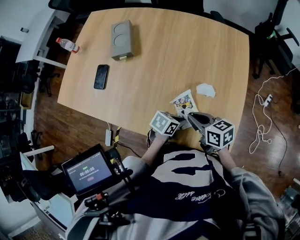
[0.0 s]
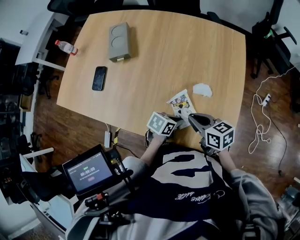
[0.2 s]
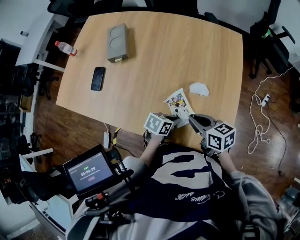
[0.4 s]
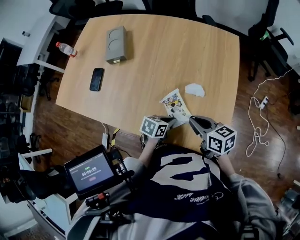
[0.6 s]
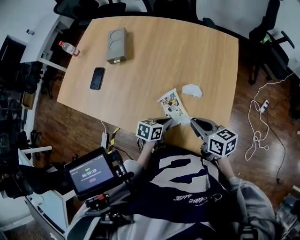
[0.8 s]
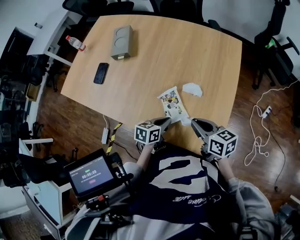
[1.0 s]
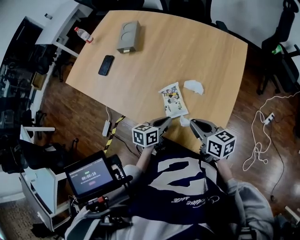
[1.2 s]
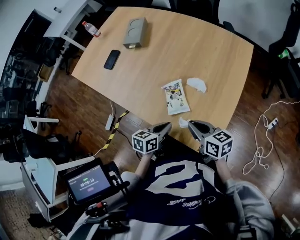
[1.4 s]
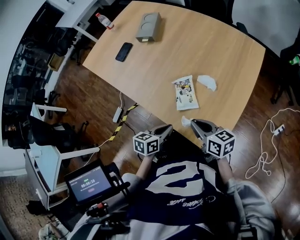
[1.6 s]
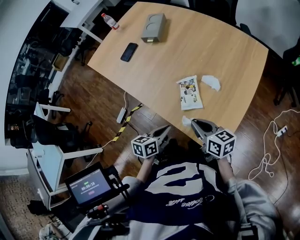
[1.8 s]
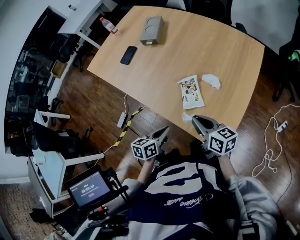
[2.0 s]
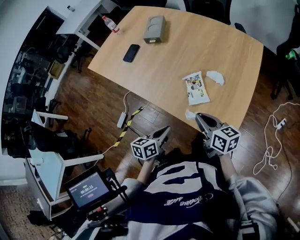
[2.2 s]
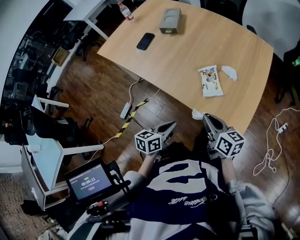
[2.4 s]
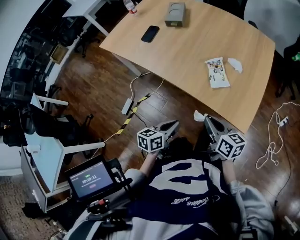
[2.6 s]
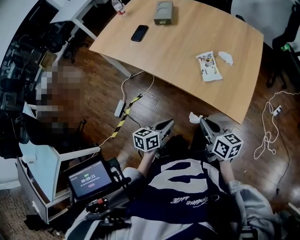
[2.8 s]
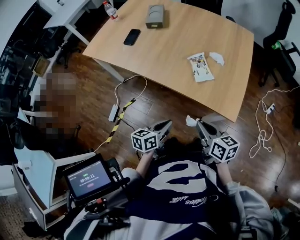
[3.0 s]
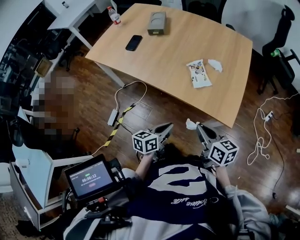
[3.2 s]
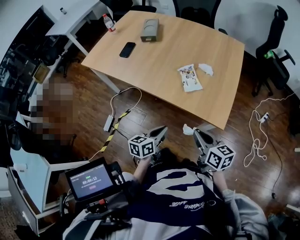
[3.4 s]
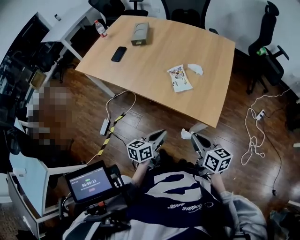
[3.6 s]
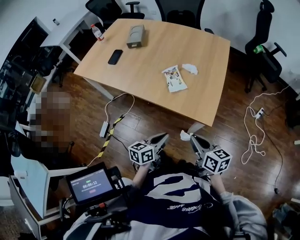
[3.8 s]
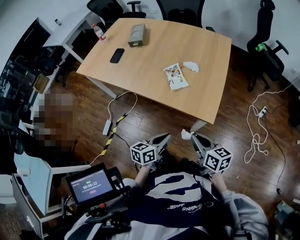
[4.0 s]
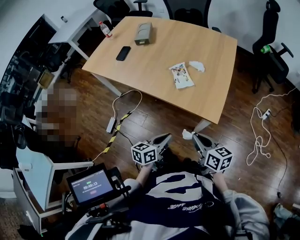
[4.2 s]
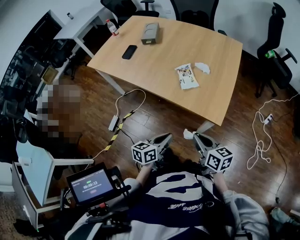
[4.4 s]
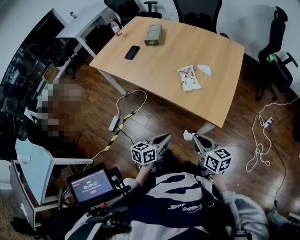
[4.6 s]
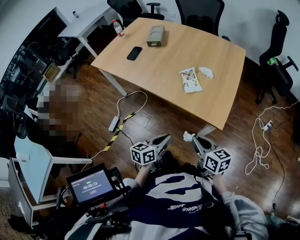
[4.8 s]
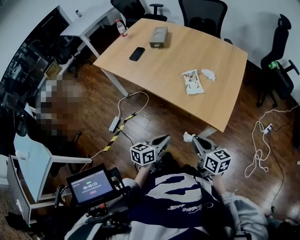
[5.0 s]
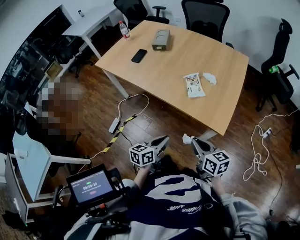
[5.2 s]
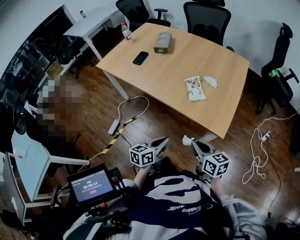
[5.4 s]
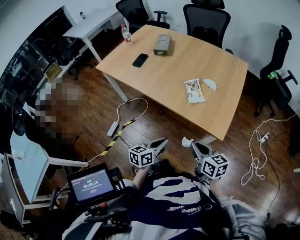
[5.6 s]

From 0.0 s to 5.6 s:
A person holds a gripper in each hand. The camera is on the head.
From 0.0 s to 1.4 s: The right gripper moves approximately 10 cm. Meanwhile the left gripper changes place by roughly 10 cm, and swivels about 40 degrees.
From 1.4 s to 2.8 s: The left gripper goes about 25 cm to the left and backward. The right gripper moves backward and to the left, roughly 25 cm.
From 2.8 s to 4.2 s: Both grippers travel together to the right and backward, approximately 15 cm.
From 4.2 s to 5.6 s: Both grippers travel together to the left, approximately 10 cm.

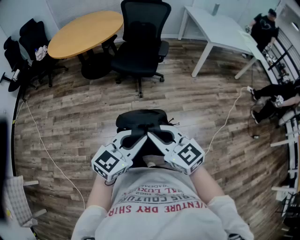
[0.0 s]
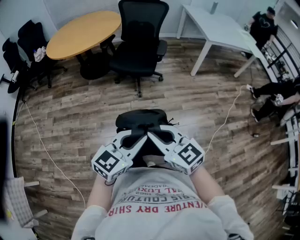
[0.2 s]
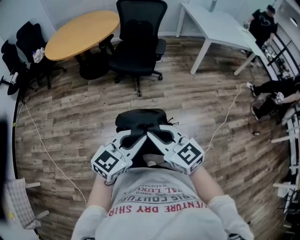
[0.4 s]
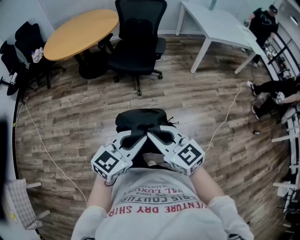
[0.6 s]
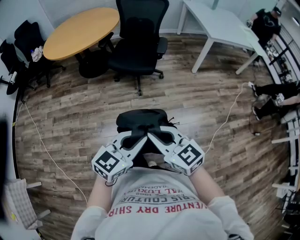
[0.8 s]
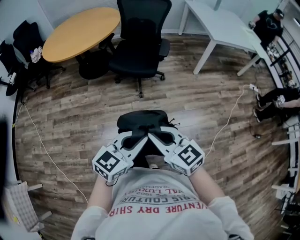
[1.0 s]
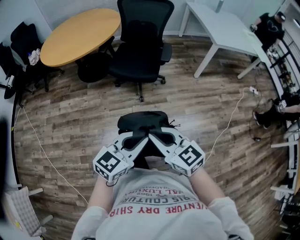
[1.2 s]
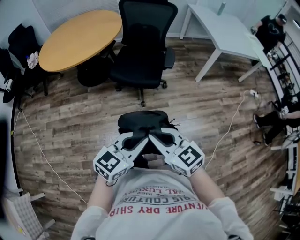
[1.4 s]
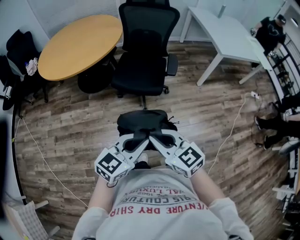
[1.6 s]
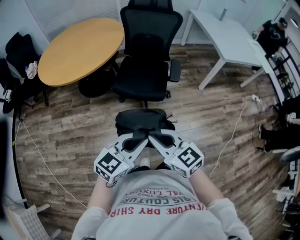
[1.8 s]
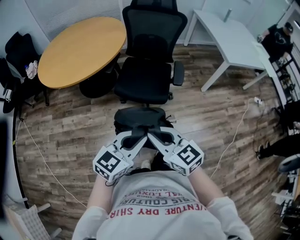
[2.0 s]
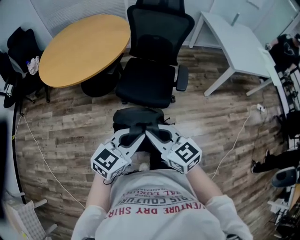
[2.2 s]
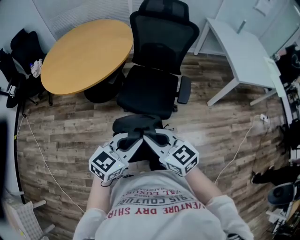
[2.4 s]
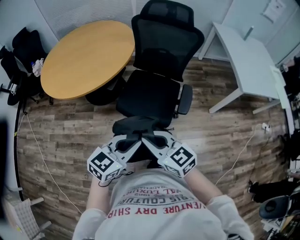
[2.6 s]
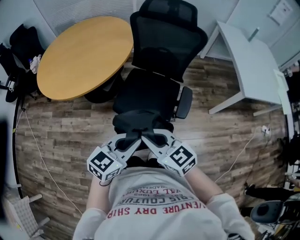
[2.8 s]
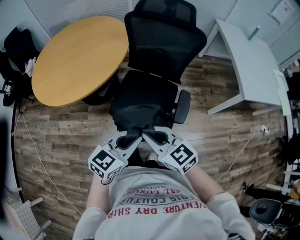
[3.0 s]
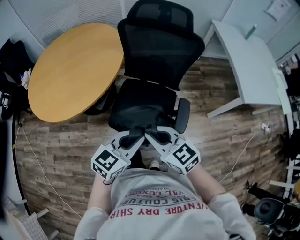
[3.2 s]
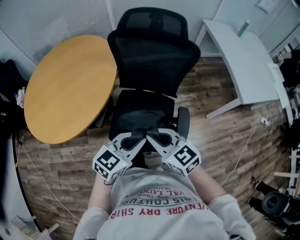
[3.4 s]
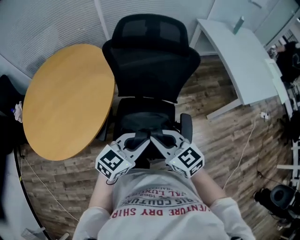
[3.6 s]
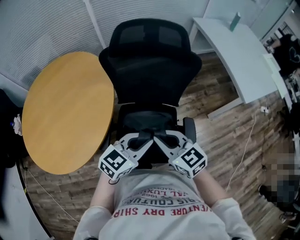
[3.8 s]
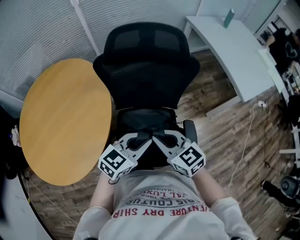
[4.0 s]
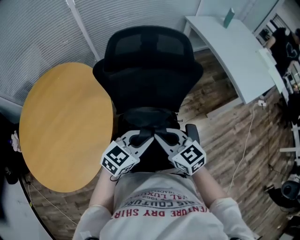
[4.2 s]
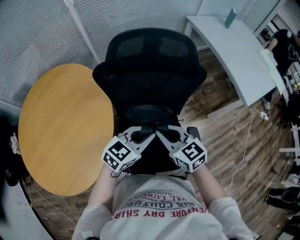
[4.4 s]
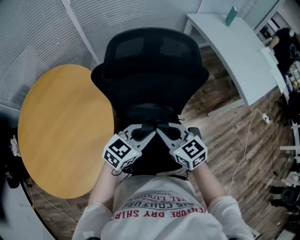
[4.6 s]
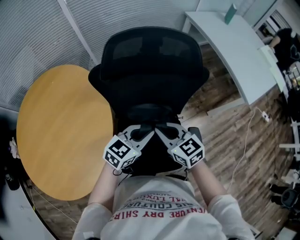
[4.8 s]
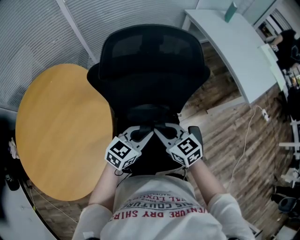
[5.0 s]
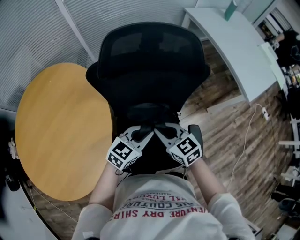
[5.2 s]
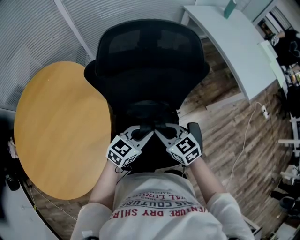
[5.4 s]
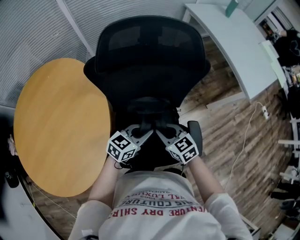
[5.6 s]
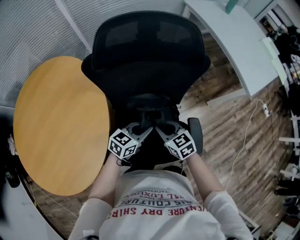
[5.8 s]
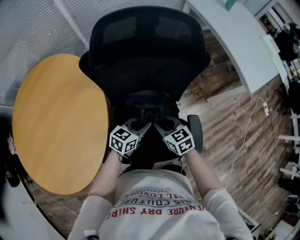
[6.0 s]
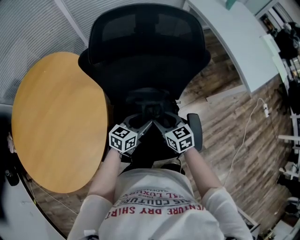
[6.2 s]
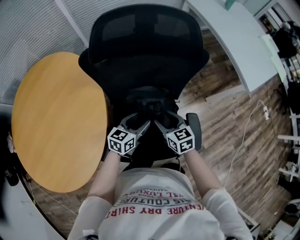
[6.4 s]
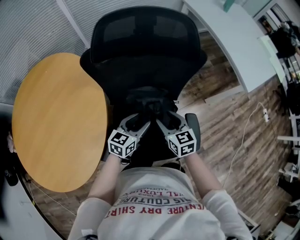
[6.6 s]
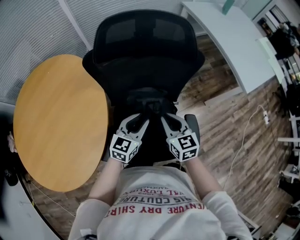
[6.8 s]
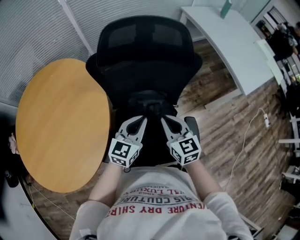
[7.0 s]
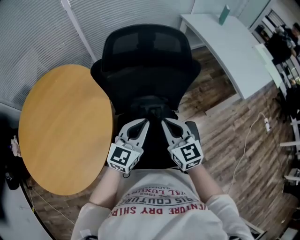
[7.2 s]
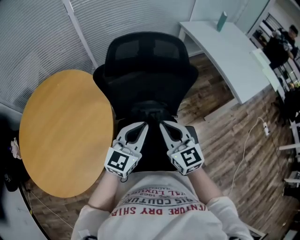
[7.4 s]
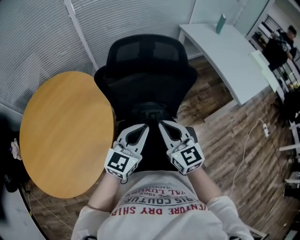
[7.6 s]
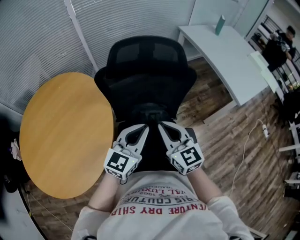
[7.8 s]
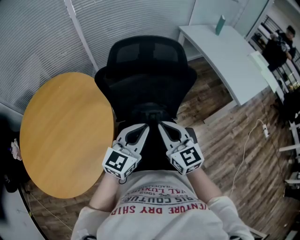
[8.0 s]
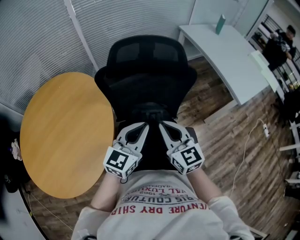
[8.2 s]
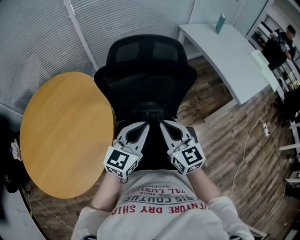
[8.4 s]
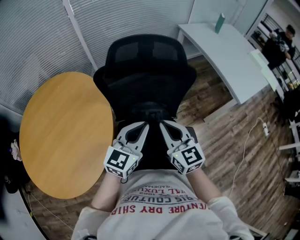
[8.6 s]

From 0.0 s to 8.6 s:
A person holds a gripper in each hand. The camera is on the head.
From 0.0 s to 1.4 s: The grippers both shift forward by about 20 cm.
From 1.4 s to 2.8 s: Both grippers move forward, about 35 cm.
From 2.8 s to 4.4 s: The two grippers travel together, some 40 cm. The left gripper changes its angle by about 30 degrees; the right gripper turns by approximately 30 degrees.
From 4.4 s to 5.8 s: Both grippers move downward, about 15 cm.
From 5.8 s to 7.2 s: The two grippers go about 15 cm upward. The right gripper swivels approximately 30 degrees, and opens, then closes once more. The left gripper changes its angle by about 30 degrees, and opens, then closes once more.
From 7.2 s to 8.6 s: The right gripper ends up approximately 5 cm from where it was.

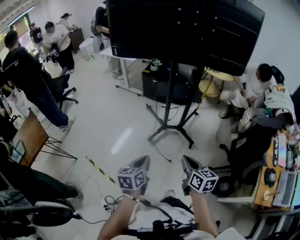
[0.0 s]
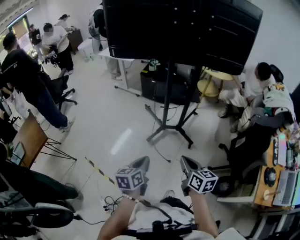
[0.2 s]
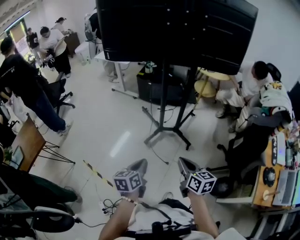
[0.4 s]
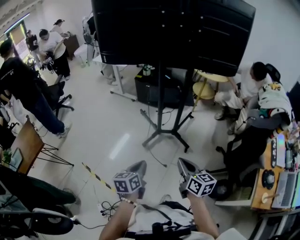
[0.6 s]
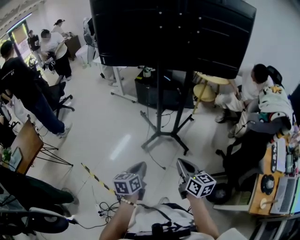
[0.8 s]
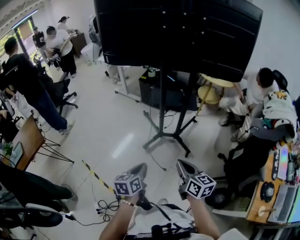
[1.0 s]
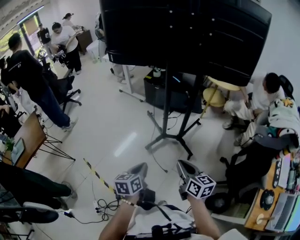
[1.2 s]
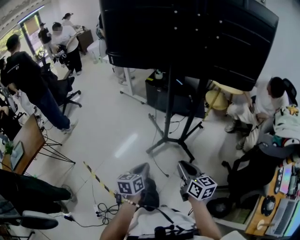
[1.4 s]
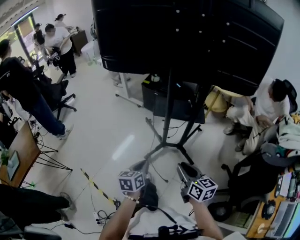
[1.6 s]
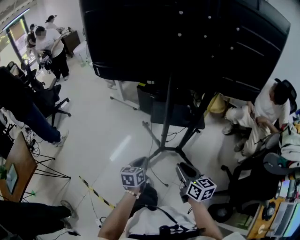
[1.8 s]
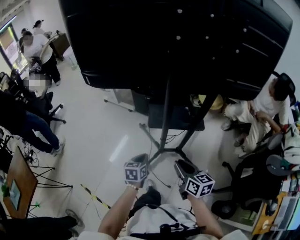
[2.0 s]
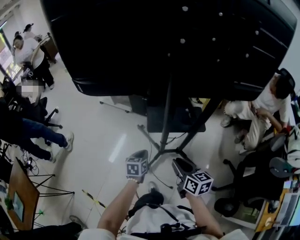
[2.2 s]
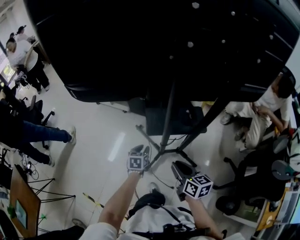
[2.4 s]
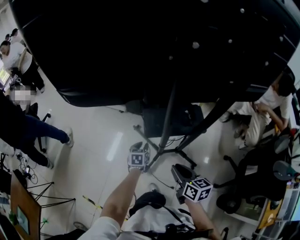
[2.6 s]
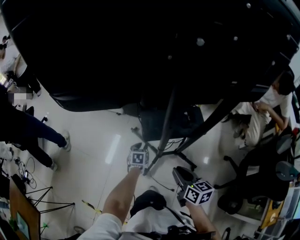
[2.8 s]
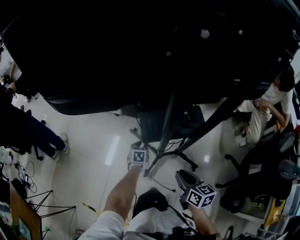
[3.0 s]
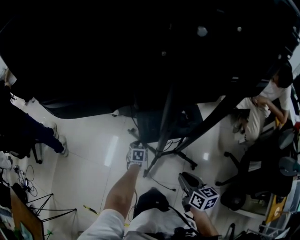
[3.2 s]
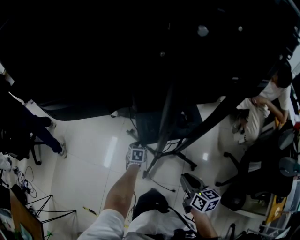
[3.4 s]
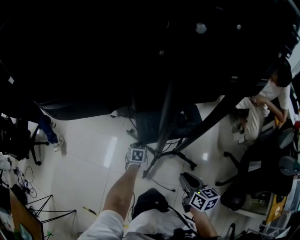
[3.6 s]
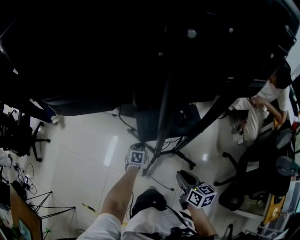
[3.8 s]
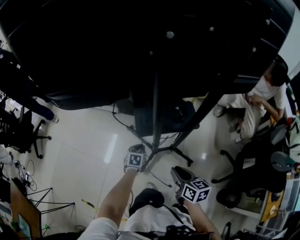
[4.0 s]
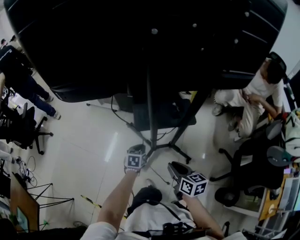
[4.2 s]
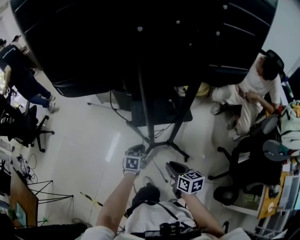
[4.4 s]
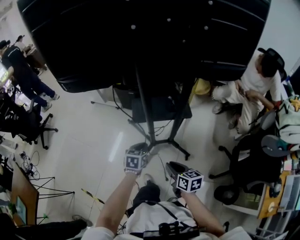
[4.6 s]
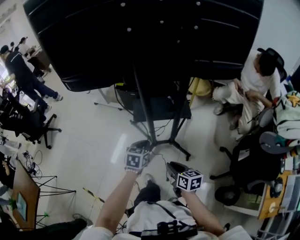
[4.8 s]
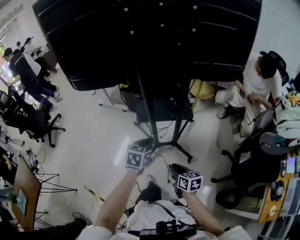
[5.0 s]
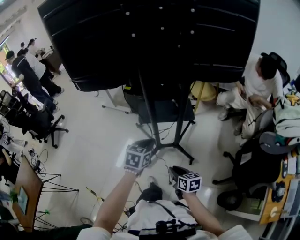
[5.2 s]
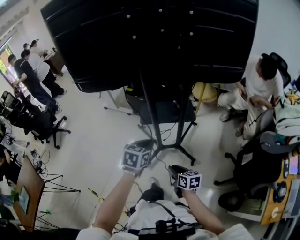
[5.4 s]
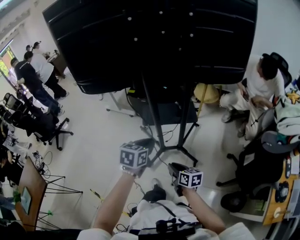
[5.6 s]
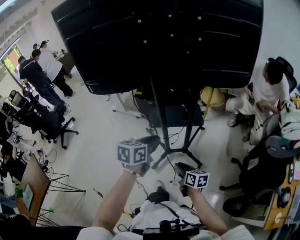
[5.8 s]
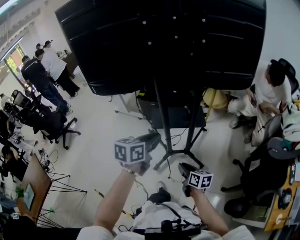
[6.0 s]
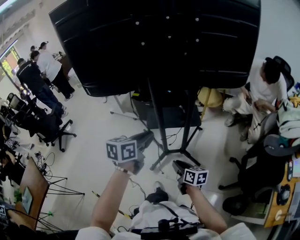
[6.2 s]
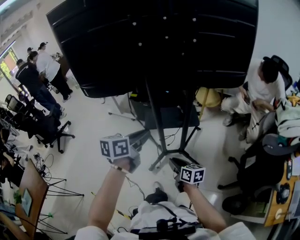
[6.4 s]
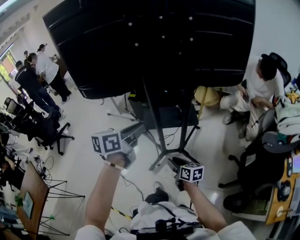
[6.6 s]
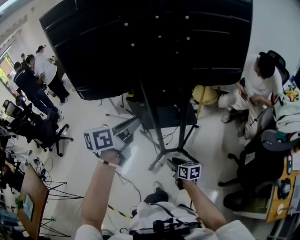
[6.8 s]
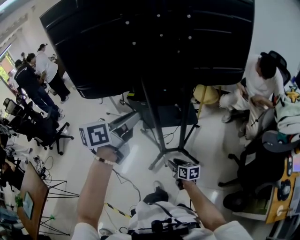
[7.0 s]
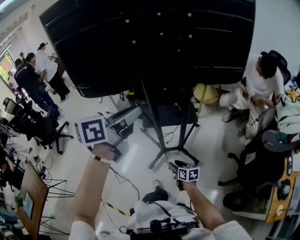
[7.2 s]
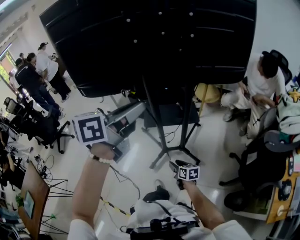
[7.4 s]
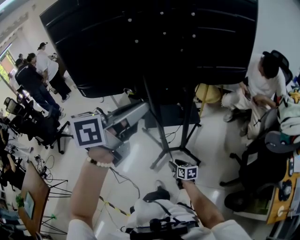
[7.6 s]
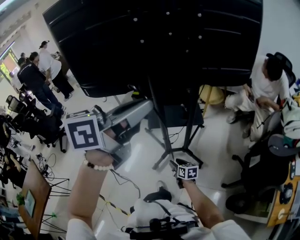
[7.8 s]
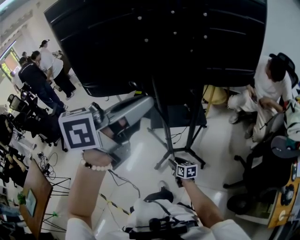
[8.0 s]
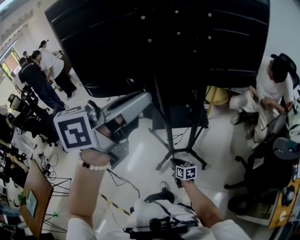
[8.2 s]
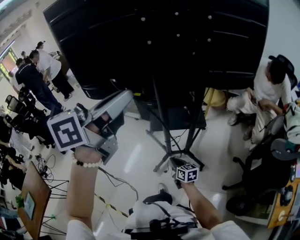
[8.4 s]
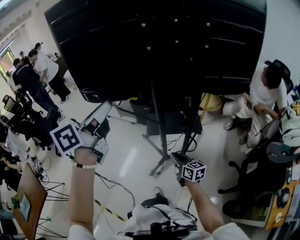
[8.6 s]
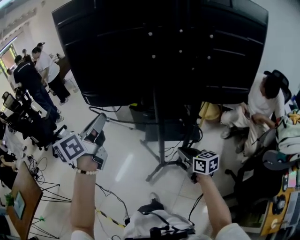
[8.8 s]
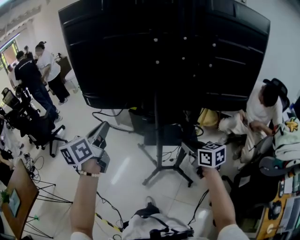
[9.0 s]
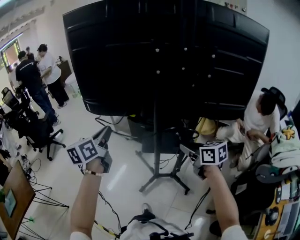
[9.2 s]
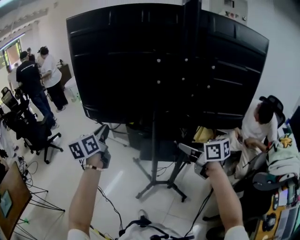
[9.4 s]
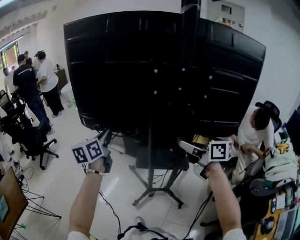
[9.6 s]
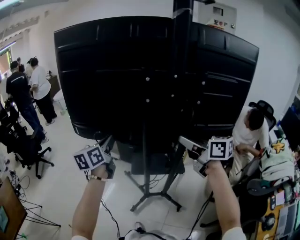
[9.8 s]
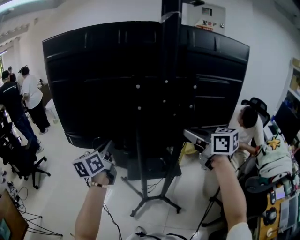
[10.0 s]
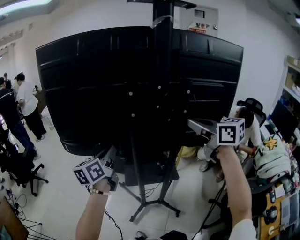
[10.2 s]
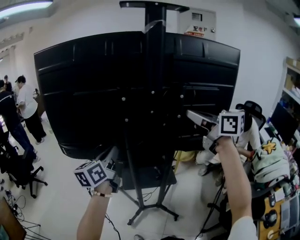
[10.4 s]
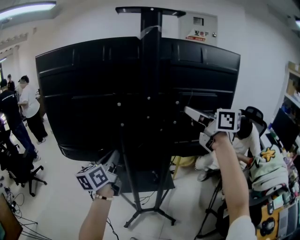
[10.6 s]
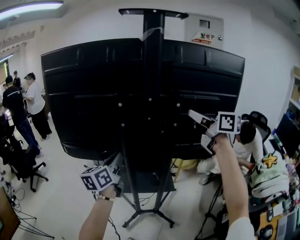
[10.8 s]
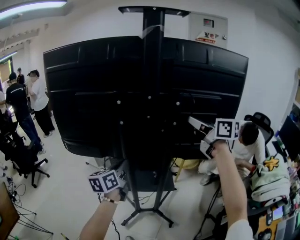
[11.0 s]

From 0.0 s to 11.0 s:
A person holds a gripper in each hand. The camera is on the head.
From 0.0 s to 1.6 s: Both grippers travel together forward, roughly 20 cm. The right gripper opens.
From 1.6 s to 3.2 s: The right gripper heads forward and downward, covering about 30 cm, and swivels approximately 20 degrees. Meanwhile the left gripper shifts about 60 cm forward and downward, rotates some 40 degrees, and opens its fingers.
From 3.2 s to 4.8 s: The right gripper travels backward by some 15 cm; the left gripper is displaced backward, upward and to the right by some 40 cm, and closes up.
From 4.8 s to 6.2 s: The left gripper heads upward, covering some 20 cm, and rotates roughly 20 degrees.
From 6.2 s to 7.8 s: The left gripper shifts approximately 25 cm upward, and turns by roughly 30 degrees. The right gripper goes approximately 10 cm downward, and opens.
From 7.8 s to 9.4 s: The right gripper travels upward by about 40 cm, turns by about 30 degrees, and closes its fingers. The left gripper changes place by some 30 cm, and swivels about 50 degrees.
From 9.4 s to 11.0 s: The left gripper moves to the right, some 25 cm. Meanwhile the right gripper goes approximately 30 cm upward, to the right and forward, and turns by roughly 20 degrees.
